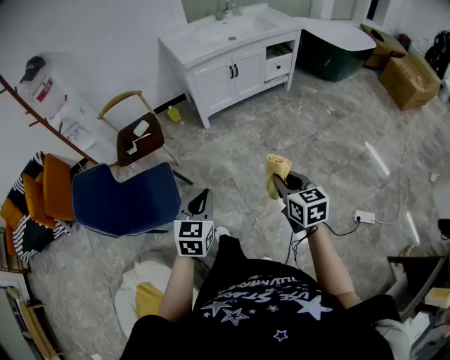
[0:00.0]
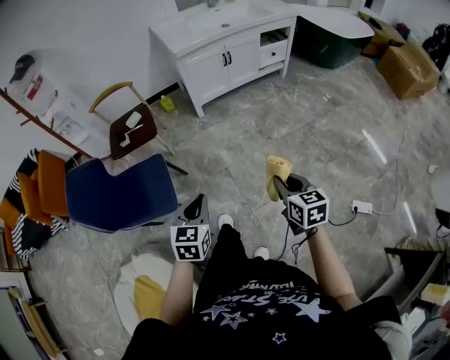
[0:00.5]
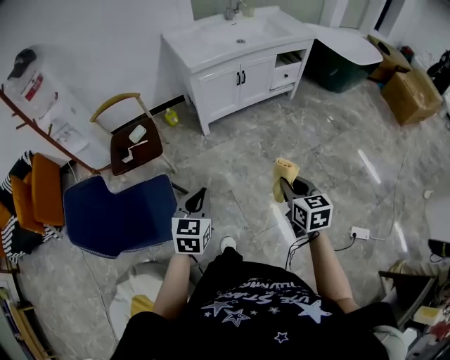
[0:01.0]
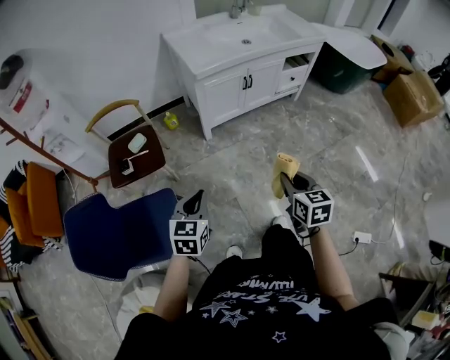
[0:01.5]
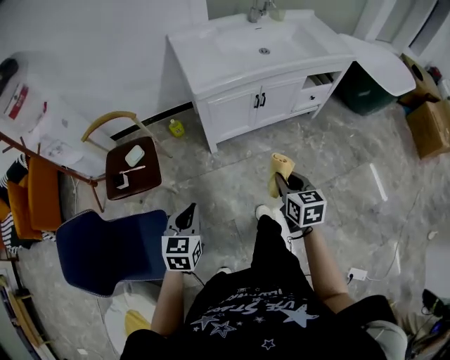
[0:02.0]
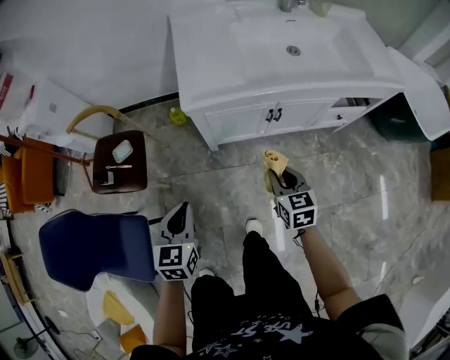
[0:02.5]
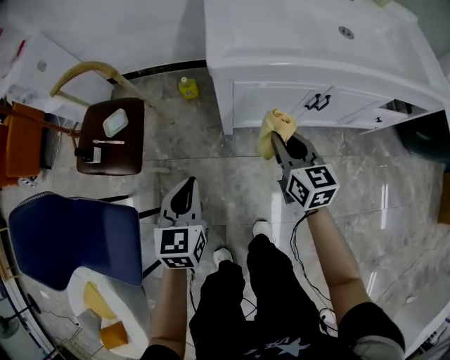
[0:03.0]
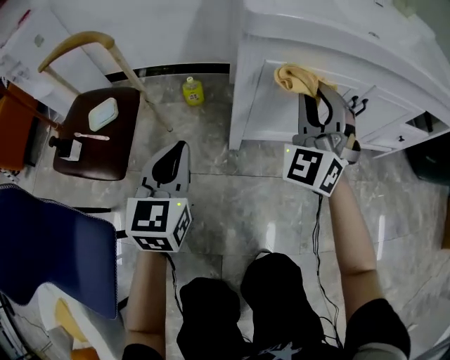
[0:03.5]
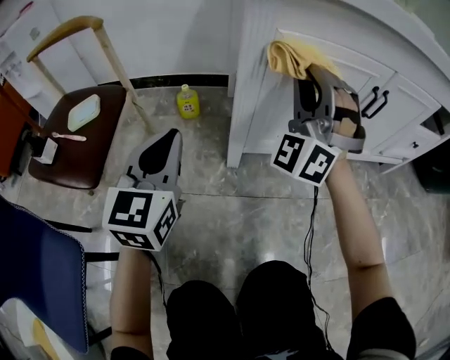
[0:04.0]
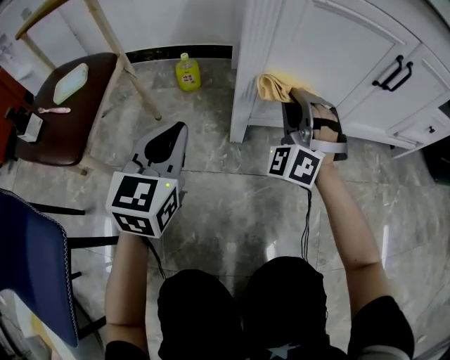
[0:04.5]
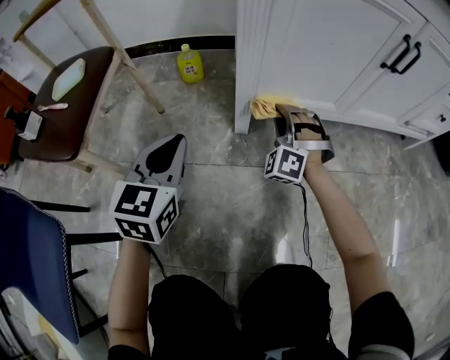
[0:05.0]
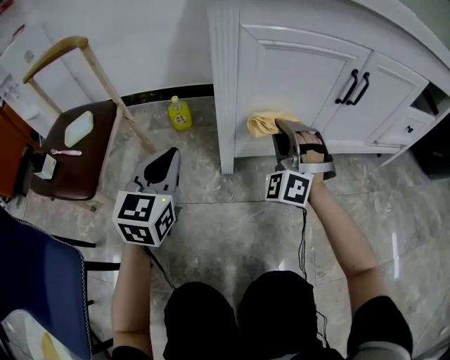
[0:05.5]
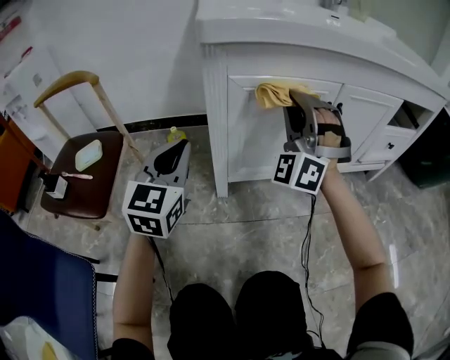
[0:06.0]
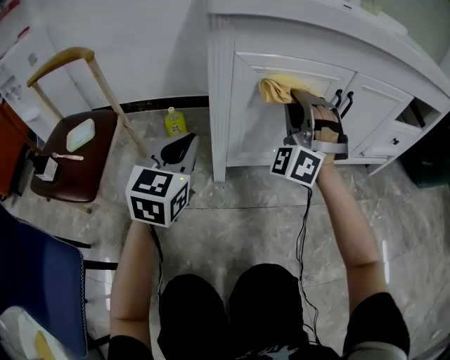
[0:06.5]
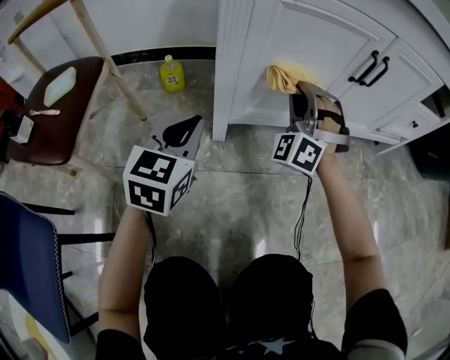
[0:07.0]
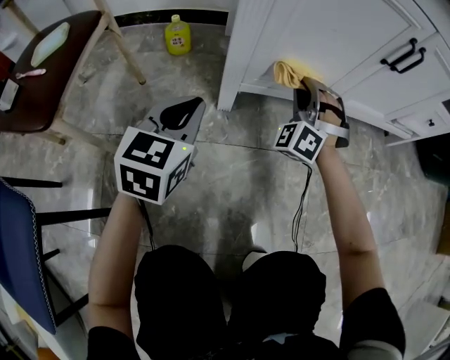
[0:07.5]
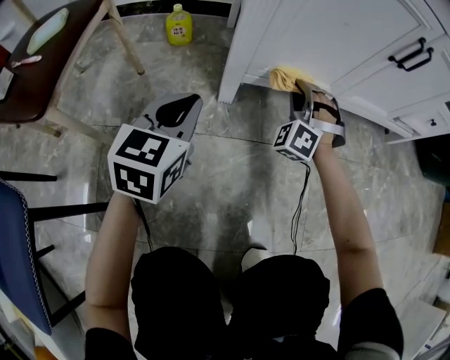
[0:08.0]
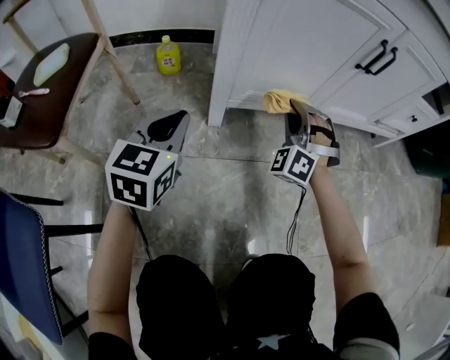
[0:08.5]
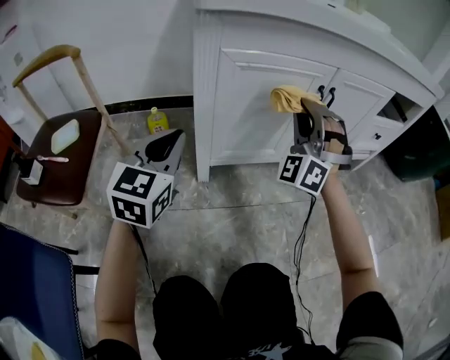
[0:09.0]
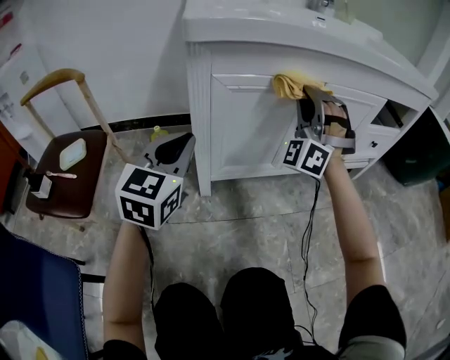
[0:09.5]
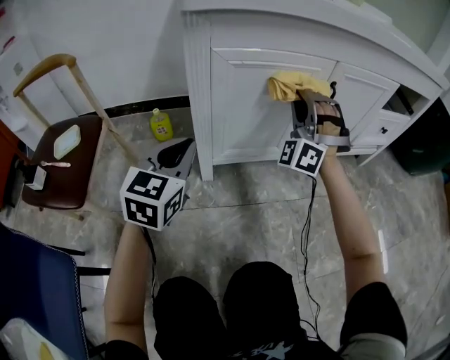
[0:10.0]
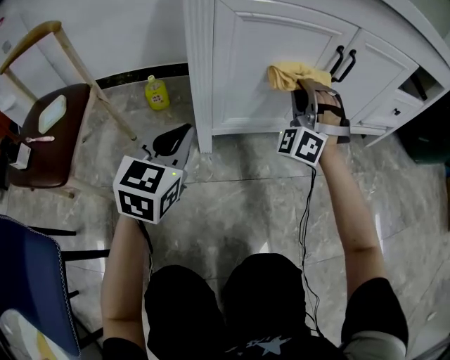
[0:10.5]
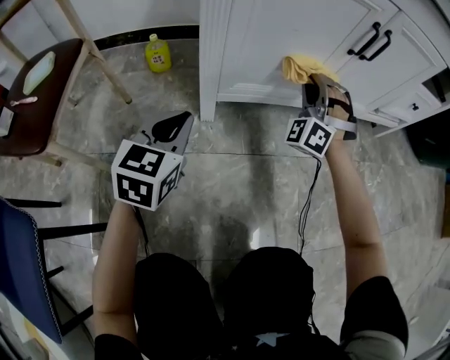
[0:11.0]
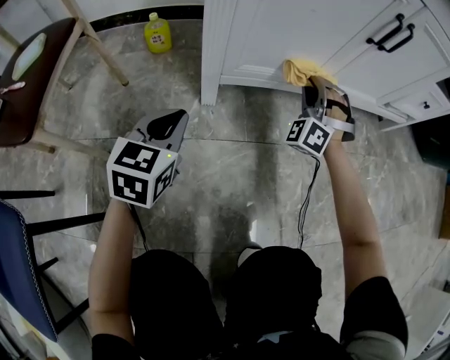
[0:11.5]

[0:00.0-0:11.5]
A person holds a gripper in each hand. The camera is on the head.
0:00.0 to 0:02.0: The two grippers travel together, forward, roughly 40 cm.
0:02.0 to 0:04.0: The left gripper heads downward and forward, covering about 50 cm, and turns by about 30 degrees, while the right gripper heads forward and downward, covering some 50 cm, and rolls counterclockwise, seen from behind, by some 80 degrees.
0:04.0 to 0:06.0: The grippers both shift to the right by some 5 cm. The left gripper reaches roughly 15 cm downward, then returns, while the right gripper moves about 35 cm downward and comes back.
0:06.0 to 0:07.5: Both grippers move downward, approximately 30 cm. The left gripper rotates approximately 20 degrees. The right gripper swivels approximately 20 degrees.
0:07.5 to 0:09.5: The grippers both shift upward by roughly 30 cm. The right gripper turns by approximately 30 degrees.
0:09.5 to 0:11.5: The two grippers go roughly 30 cm downward. The right gripper rotates roughly 30 degrees. Meanwhile the left gripper turns by roughly 20 degrees.

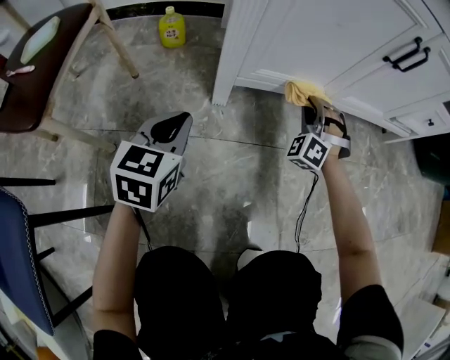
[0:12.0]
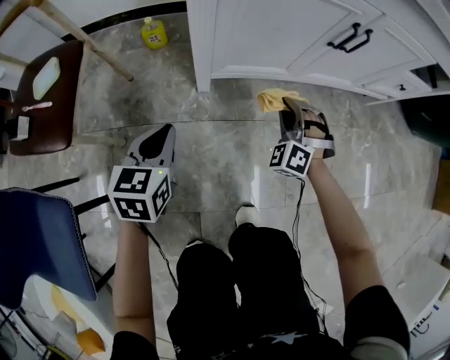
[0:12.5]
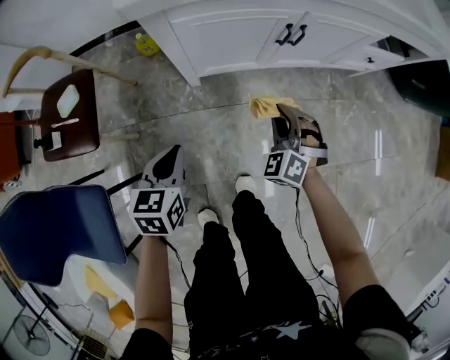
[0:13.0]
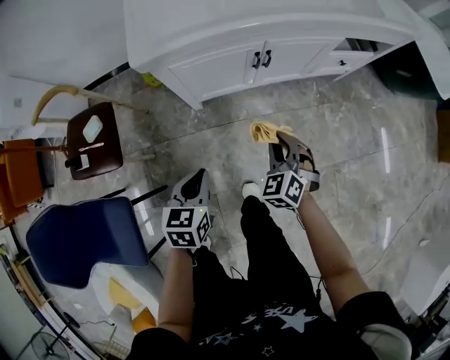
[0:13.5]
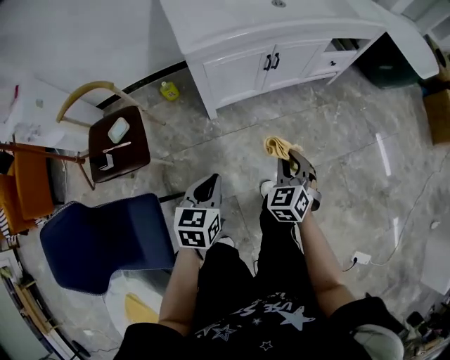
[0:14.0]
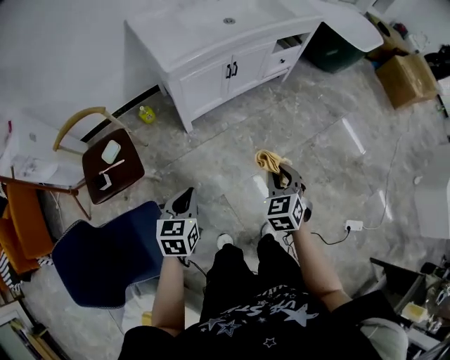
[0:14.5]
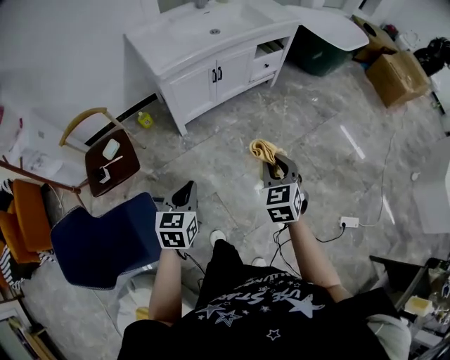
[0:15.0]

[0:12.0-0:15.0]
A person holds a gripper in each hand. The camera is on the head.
0:12.0 to 0:13.5: The right gripper goes approximately 50 cm upward and backward, and twists approximately 40 degrees clockwise, seen from behind. The left gripper moves upward and to the right, some 40 cm.
0:13.5 to 0:15.0: The grippers both shift backward and upward by about 40 cm. The right gripper swivels about 40 degrees. The left gripper rotates about 20 degrees.

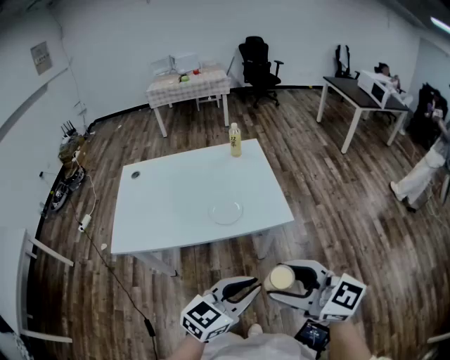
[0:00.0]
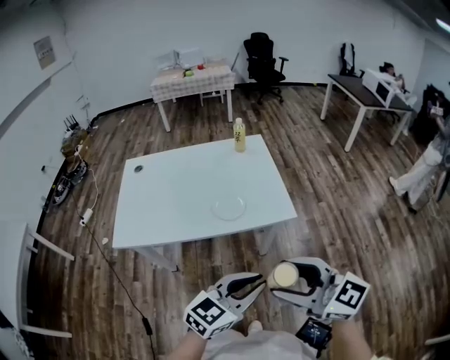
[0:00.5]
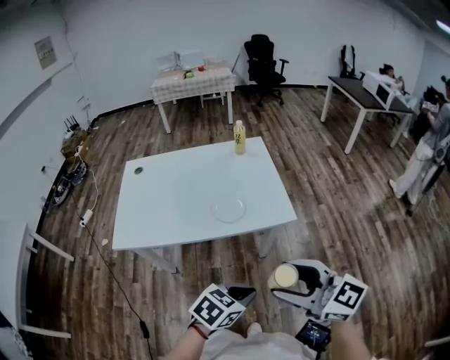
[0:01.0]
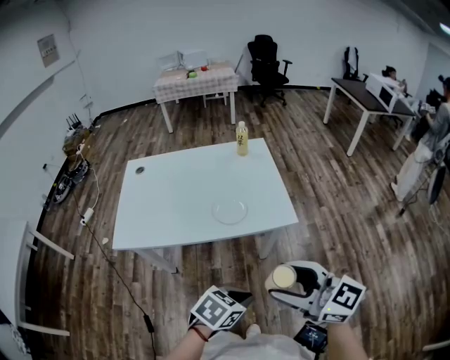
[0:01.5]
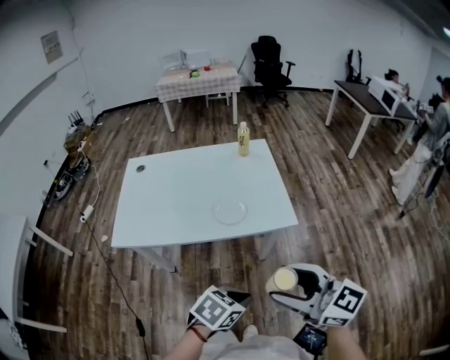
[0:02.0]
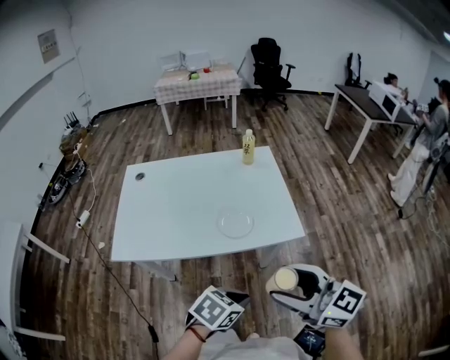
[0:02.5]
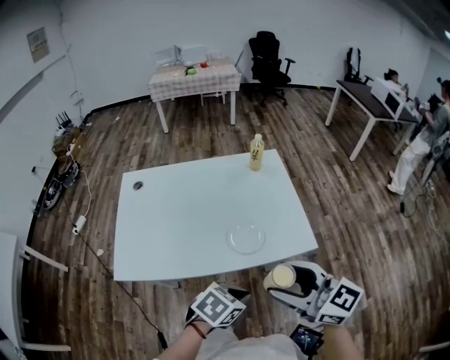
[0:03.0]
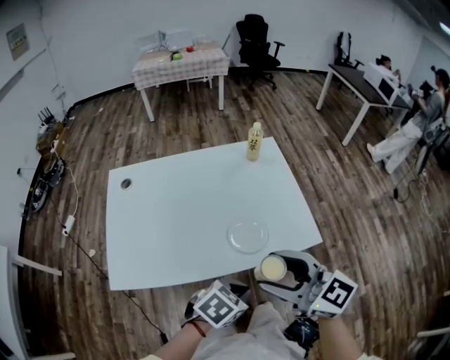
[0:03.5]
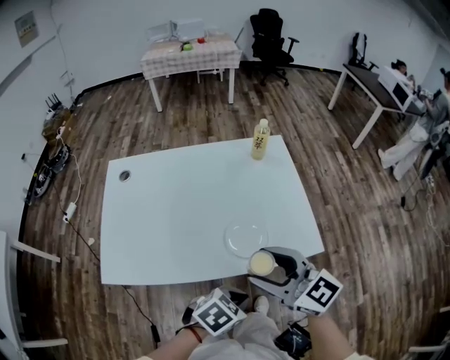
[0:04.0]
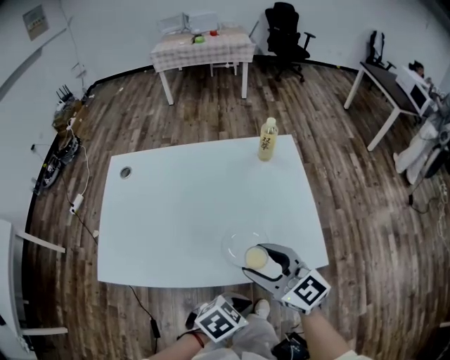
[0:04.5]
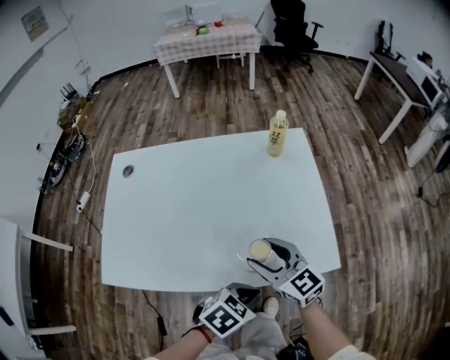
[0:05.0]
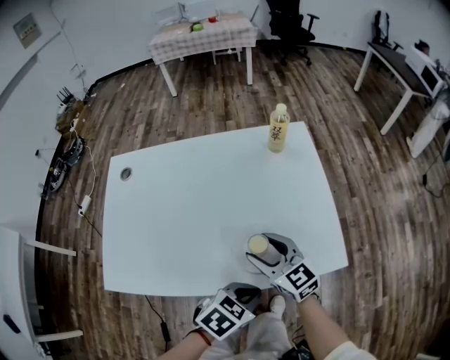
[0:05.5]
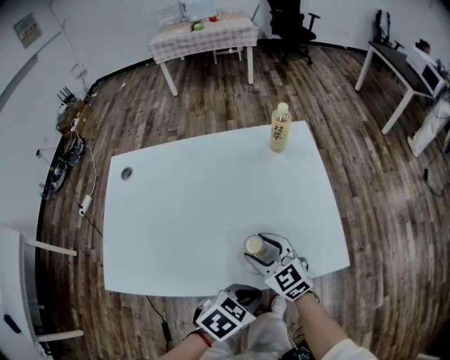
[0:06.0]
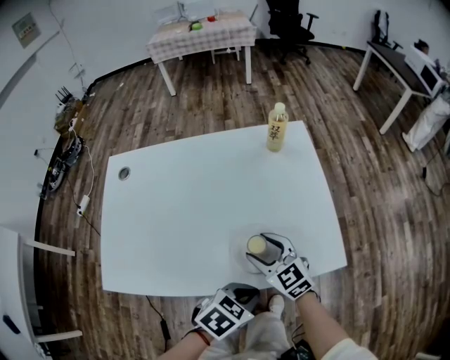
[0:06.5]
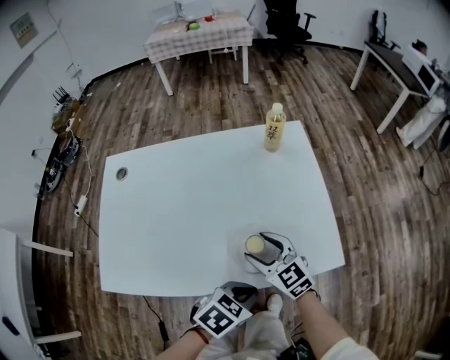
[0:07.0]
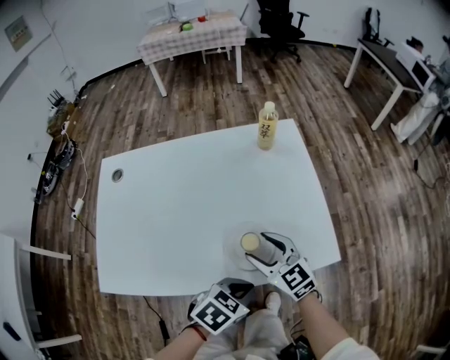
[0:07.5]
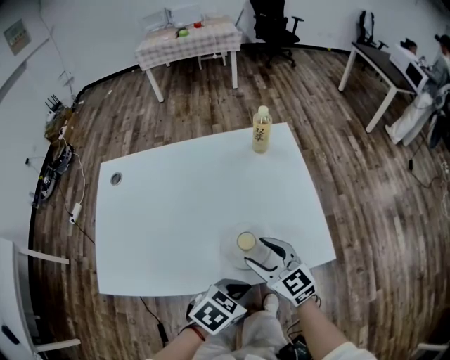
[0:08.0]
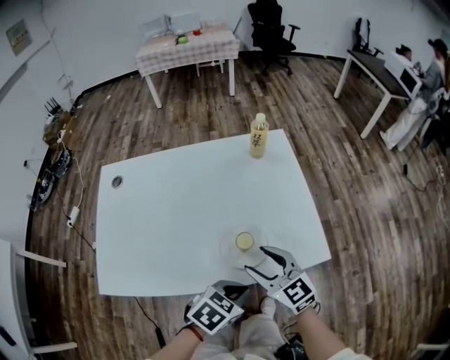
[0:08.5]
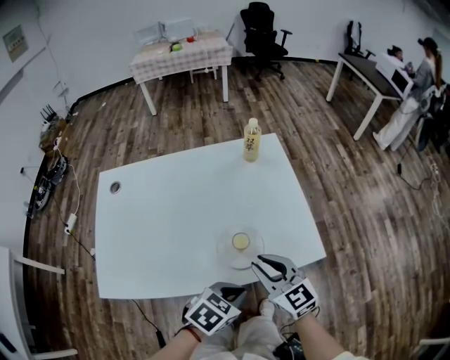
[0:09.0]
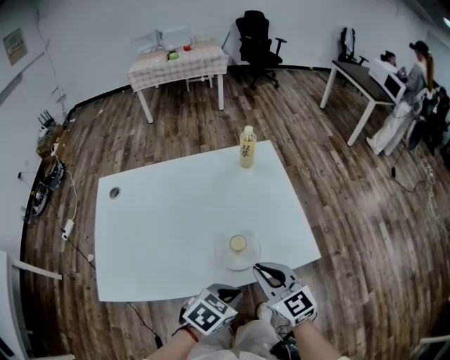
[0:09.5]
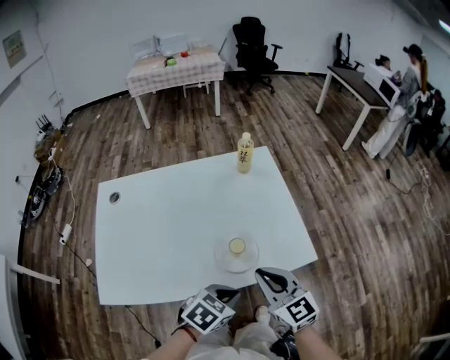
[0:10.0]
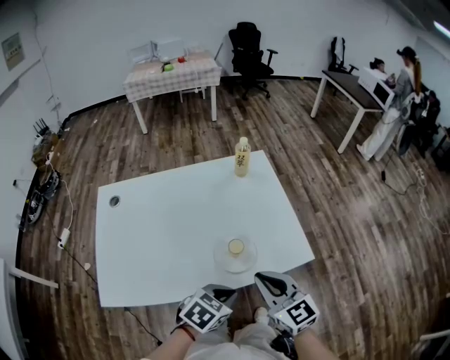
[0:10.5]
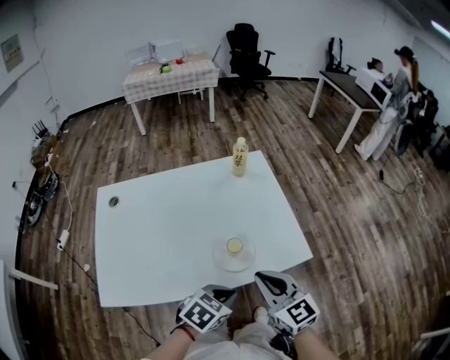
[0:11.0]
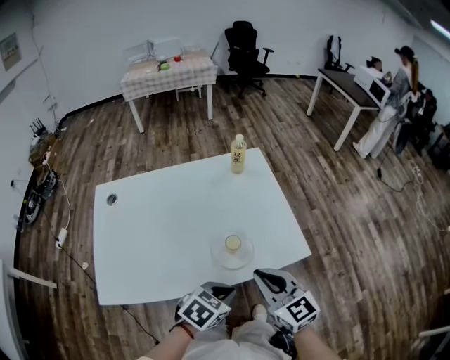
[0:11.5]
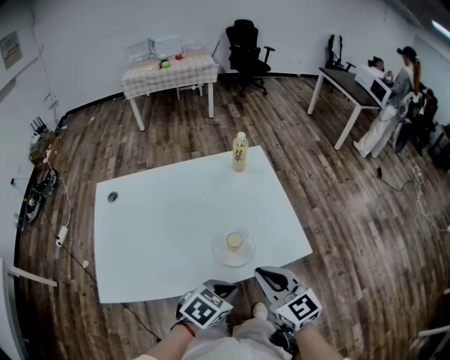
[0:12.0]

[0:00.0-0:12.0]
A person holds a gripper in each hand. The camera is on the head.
0:00.0 to 0:02.0: The left gripper shifts about 10 cm downward, and tilts its fingers approximately 40 degrees downward.
0:02.0 to 0:04.0: The right gripper moves approximately 30 cm. The left gripper moves roughly 20 cm.
0:04.0 to 0:06.0: The right gripper travels downward by some 20 cm, and turns by some 20 degrees, while the left gripper shifts by about 10 cm.
0:06.0 to 0:08.0: The right gripper shifts by approximately 5 cm.
0:08.0 to 0:10.0: The right gripper shifts some 10 cm upward and backward, and closes.
0:10.0 to 0:12.0: The grippers stay close to where they were, moving slightly.
